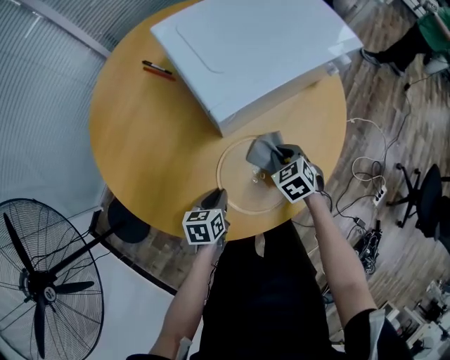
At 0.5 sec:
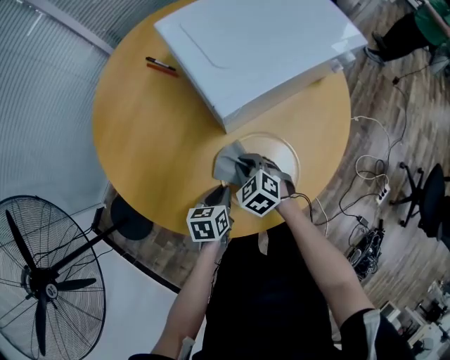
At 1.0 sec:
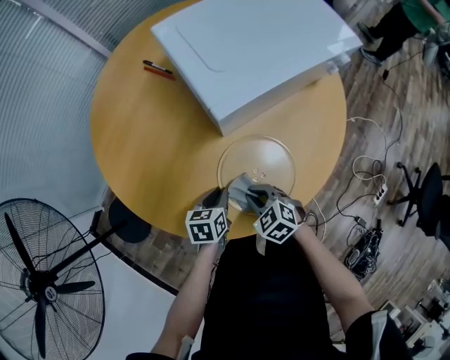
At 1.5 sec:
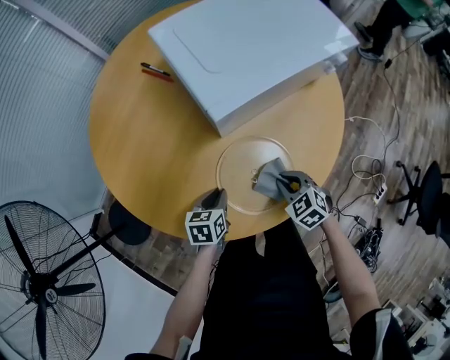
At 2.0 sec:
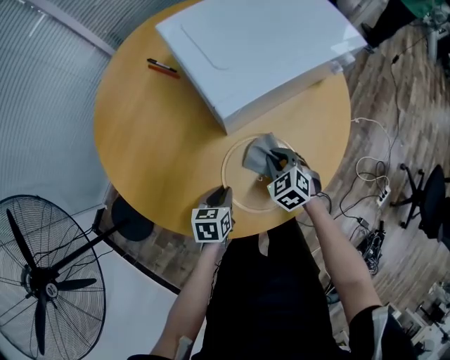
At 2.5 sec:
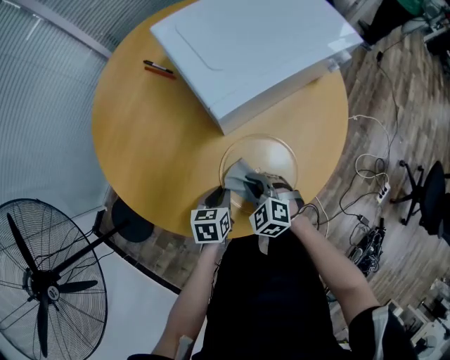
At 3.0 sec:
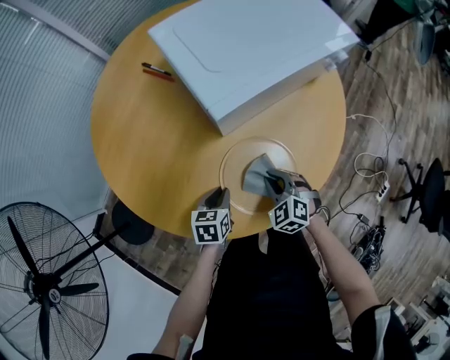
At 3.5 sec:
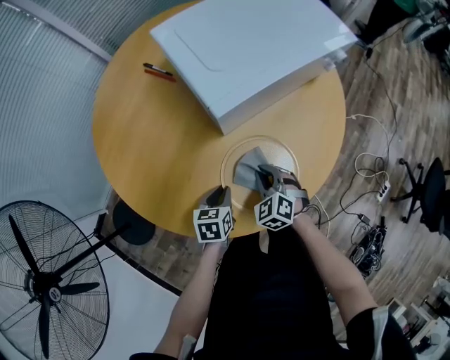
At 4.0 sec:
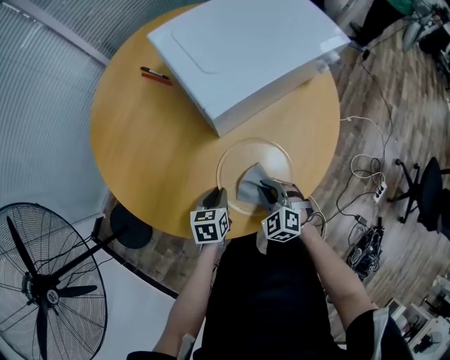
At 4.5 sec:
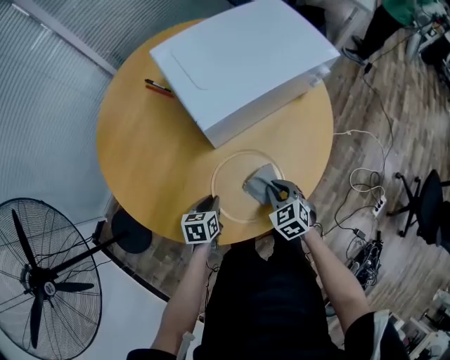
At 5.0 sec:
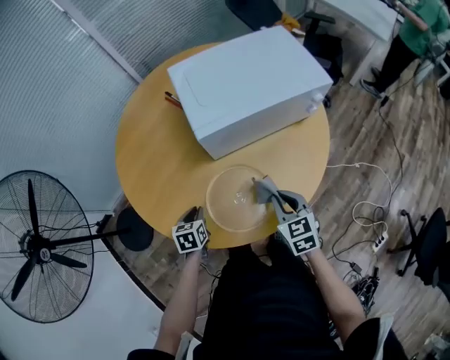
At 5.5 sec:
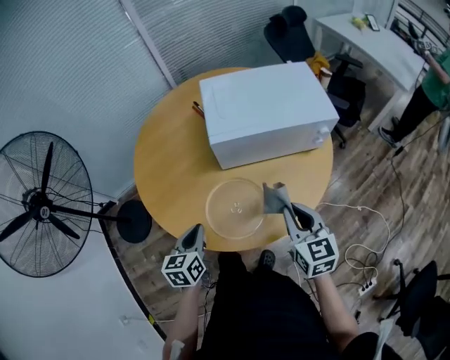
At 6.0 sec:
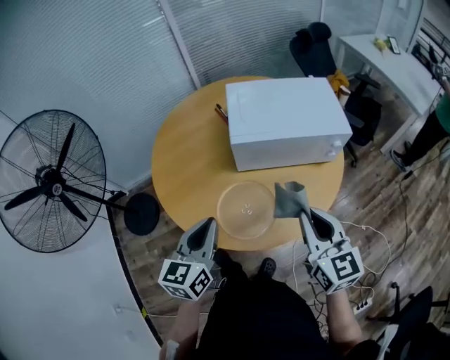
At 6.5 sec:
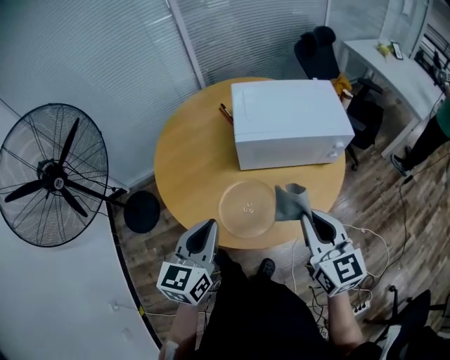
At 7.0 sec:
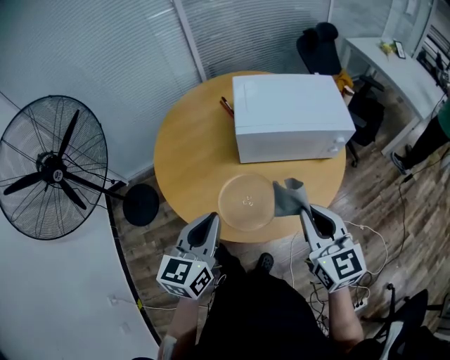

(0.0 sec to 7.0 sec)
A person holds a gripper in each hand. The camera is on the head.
0.0 sec - 2.0 sec: The right gripper travels to the left and back again, approximately 15 cm each way.
2.0 sec - 3.5 sec: The right gripper goes approximately 5 cm backward.
3.5 sec - 5.0 sec: The right gripper is displaced to the right and upward by approximately 15 cm, and turns by about 30 degrees, while the left gripper shifts by some 5 cm, and turns by approximately 20 degrees.
5.0 sec - 7.0 sec: Both grippers travel together upward, approximately 30 cm. The right gripper changes its angle by approximately 30 degrees, while the left gripper points its fingers roughly 40 degrees further upward.

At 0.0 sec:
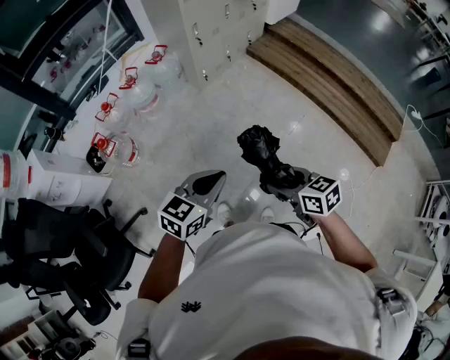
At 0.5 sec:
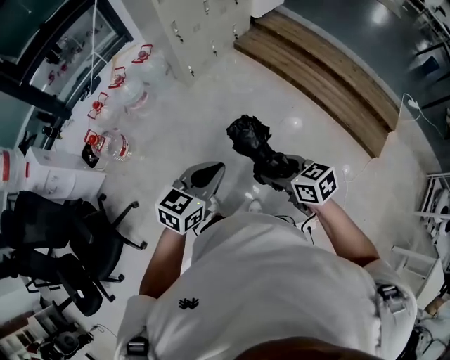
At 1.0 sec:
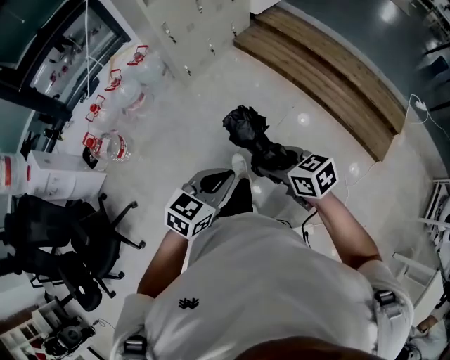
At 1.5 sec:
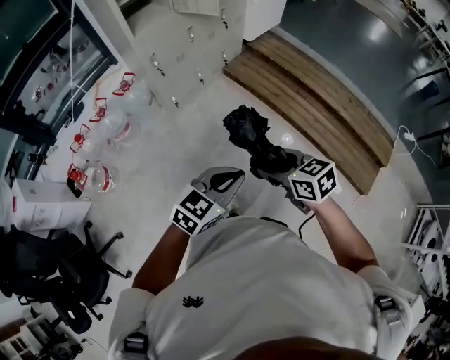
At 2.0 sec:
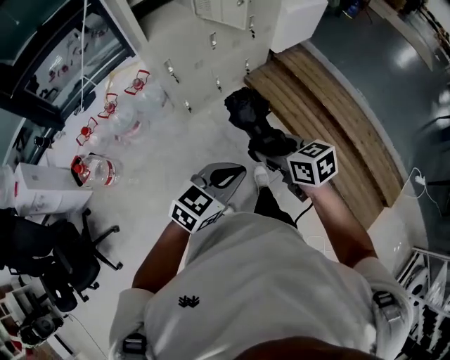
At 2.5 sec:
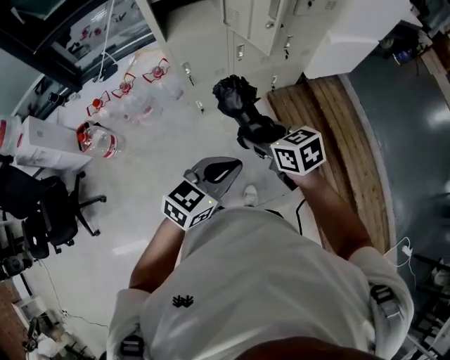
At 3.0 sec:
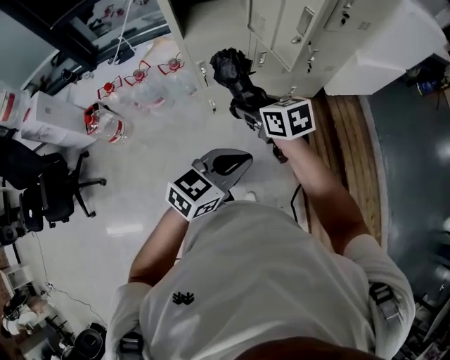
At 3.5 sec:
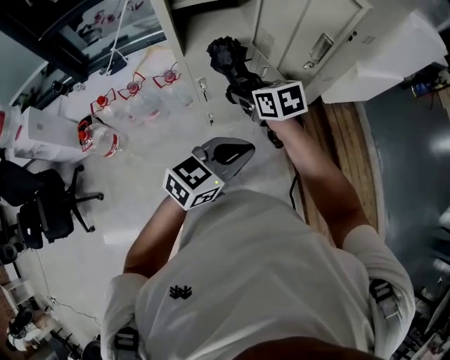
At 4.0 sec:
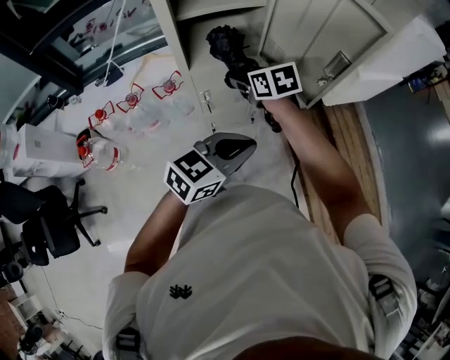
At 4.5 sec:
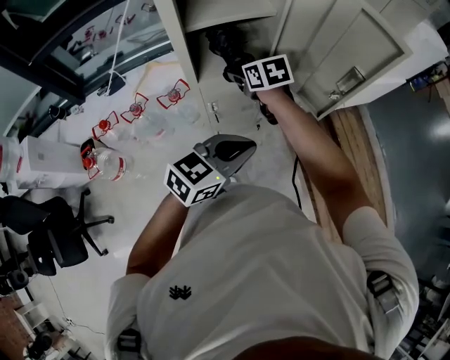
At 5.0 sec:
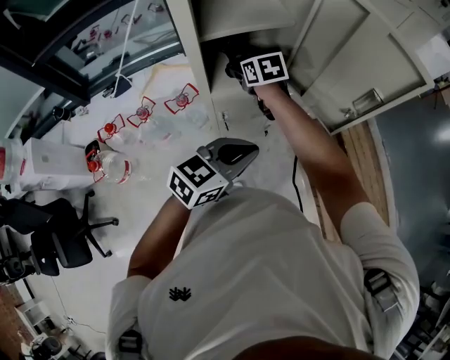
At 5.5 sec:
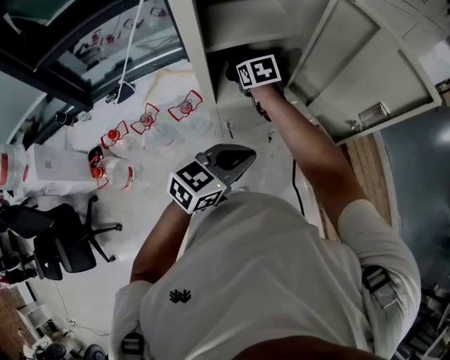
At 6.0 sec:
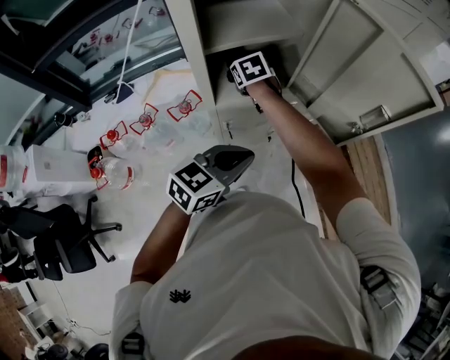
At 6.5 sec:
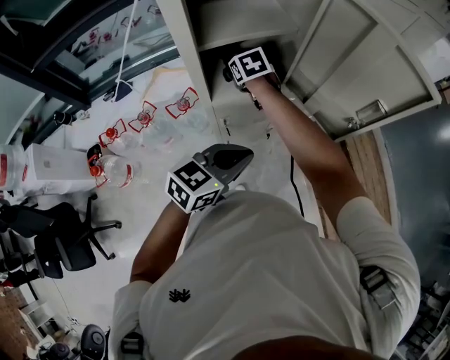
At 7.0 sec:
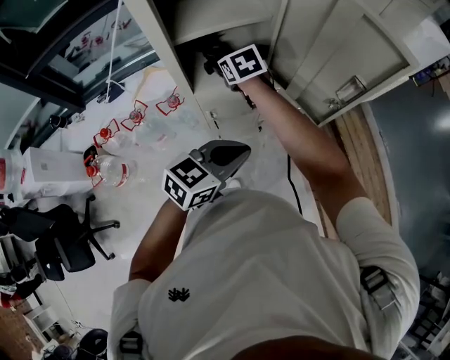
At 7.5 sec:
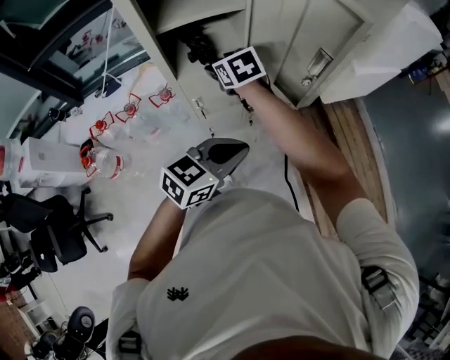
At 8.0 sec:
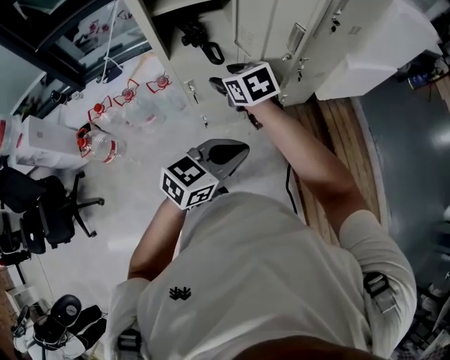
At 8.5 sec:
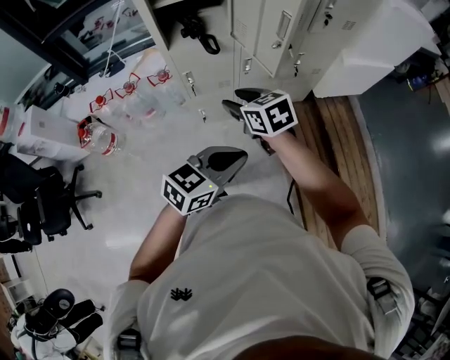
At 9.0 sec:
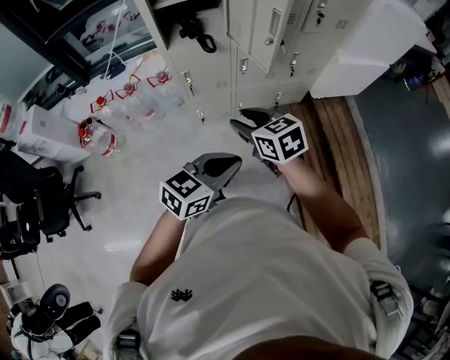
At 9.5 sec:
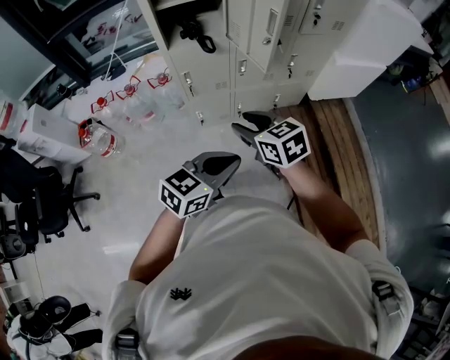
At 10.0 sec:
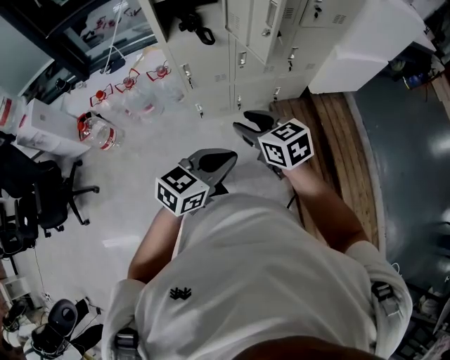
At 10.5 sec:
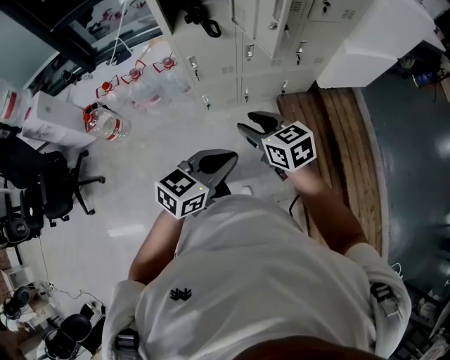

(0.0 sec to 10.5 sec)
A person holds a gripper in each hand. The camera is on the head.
0.0 sec - 2.0 sec: The two grippers travel together, forward and to the right, approximately 50 cm.
2.0 sec - 4.0 sec: Both grippers move forward, some 40 cm.
4.0 sec - 6.5 sec: The right gripper travels forward and to the left by roughly 20 cm; the left gripper shifts roughly 10 cm to the left and forward.
6.5 sec - 8.5 sec: The right gripper is displaced backward and to the right by about 40 cm, and turns by about 20 degrees; the left gripper goes about 30 cm to the right and backward.
8.5 sec - 10.5 sec: The right gripper shifts roughly 15 cm backward and to the right; the left gripper heads backward, covering roughly 5 cm.

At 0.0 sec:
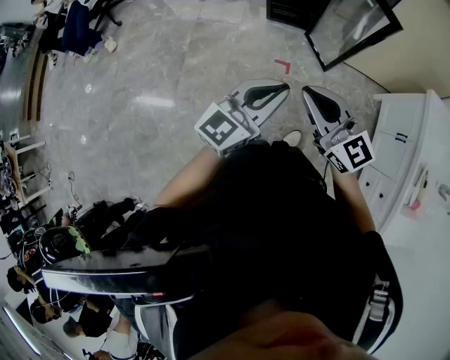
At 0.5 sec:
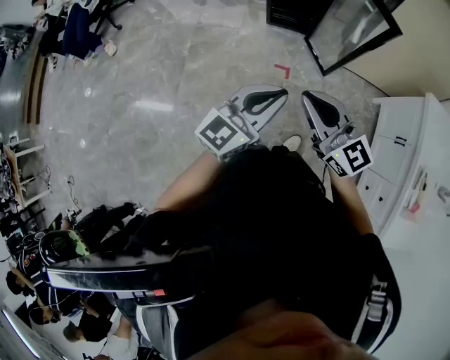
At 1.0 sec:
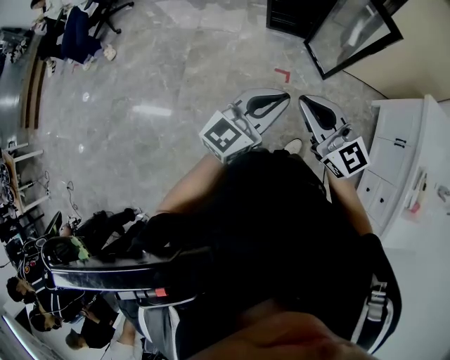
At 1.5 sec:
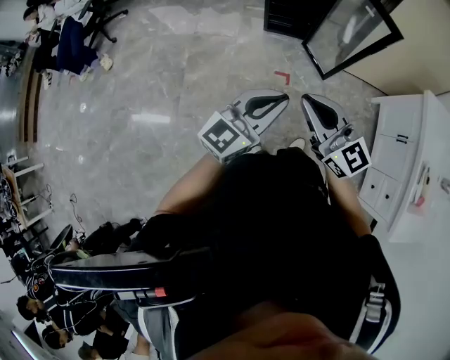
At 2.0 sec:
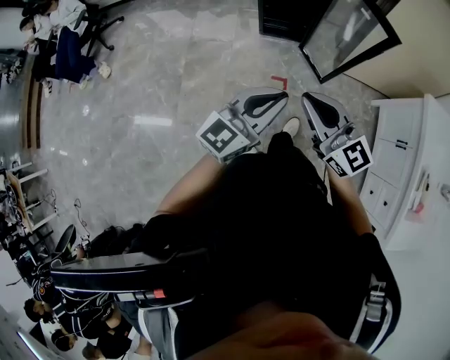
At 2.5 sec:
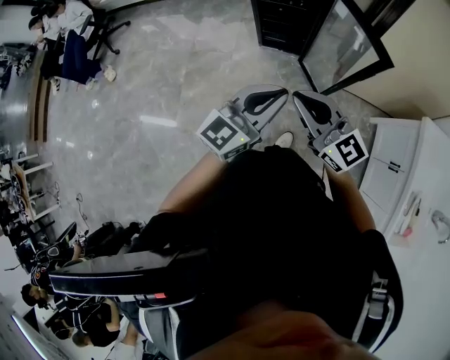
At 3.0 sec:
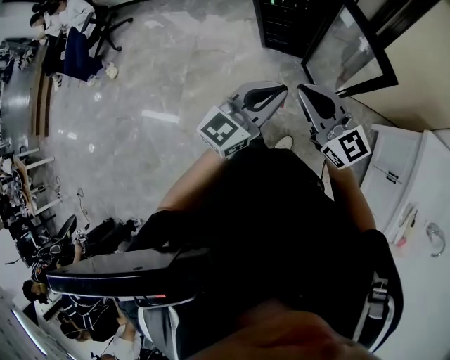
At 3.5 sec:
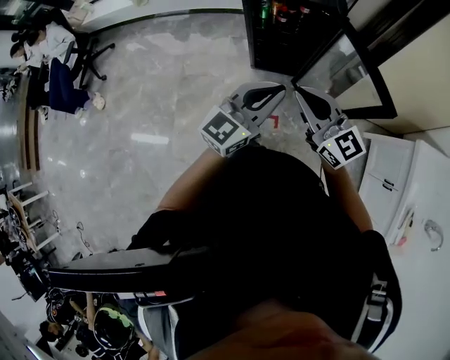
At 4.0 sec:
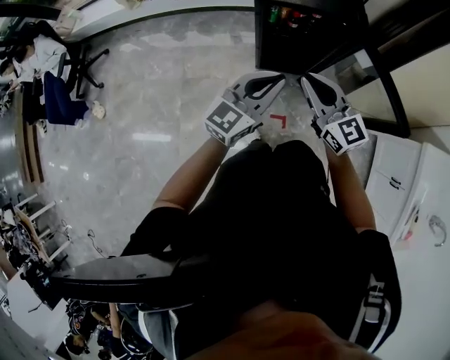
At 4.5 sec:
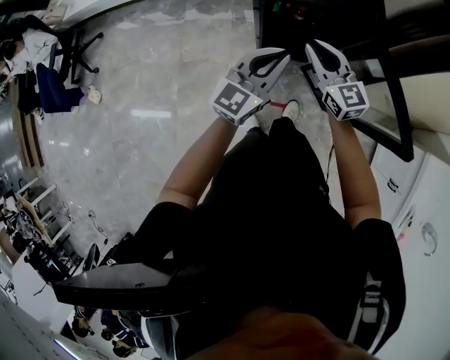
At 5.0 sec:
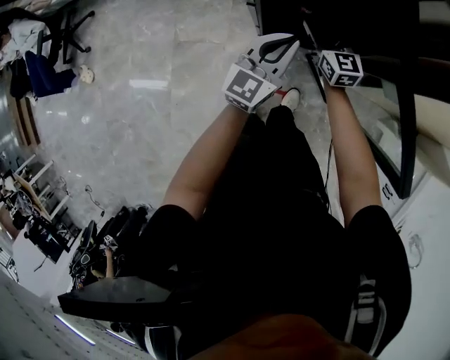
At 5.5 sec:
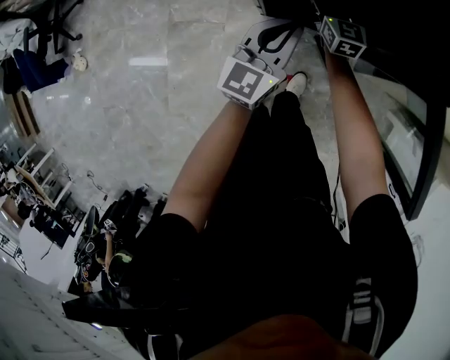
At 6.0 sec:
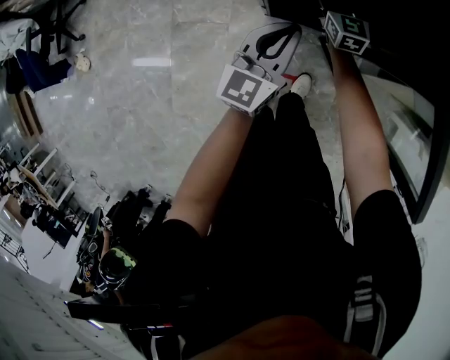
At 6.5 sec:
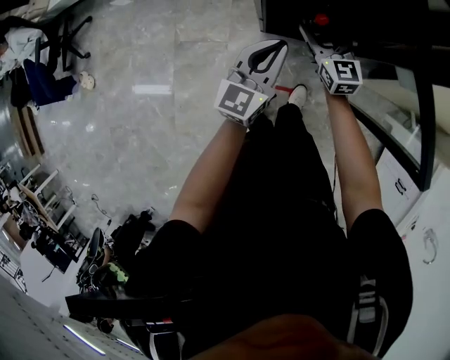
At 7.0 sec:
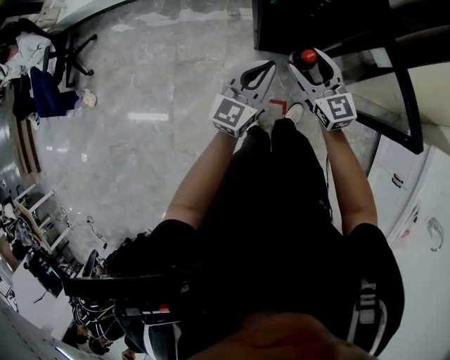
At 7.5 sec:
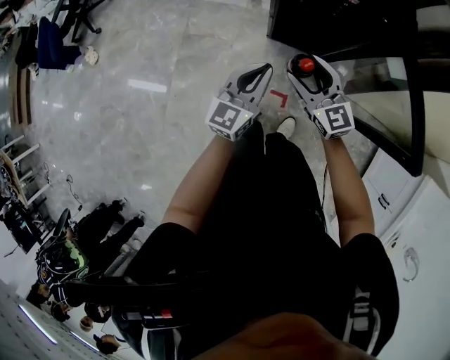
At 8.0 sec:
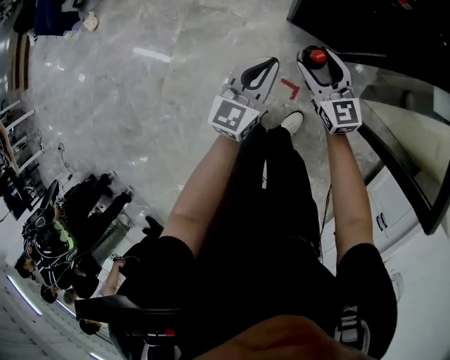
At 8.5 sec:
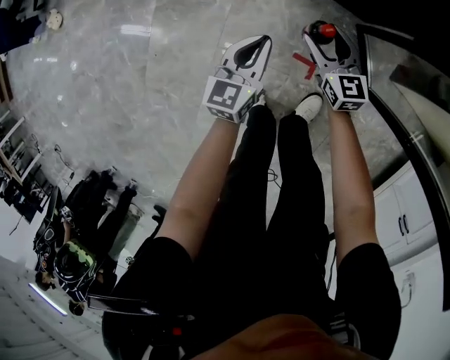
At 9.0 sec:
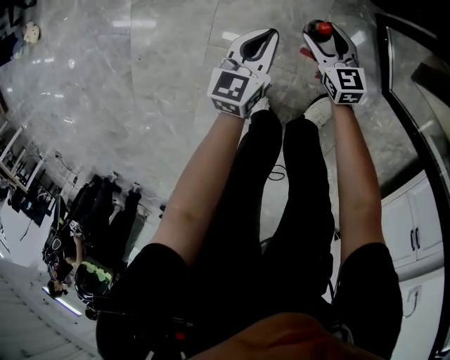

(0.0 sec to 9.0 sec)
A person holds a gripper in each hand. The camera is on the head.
0.0 sec - 2.0 sec: Both grippers move forward, roughly 10 cm.
2.0 sec - 4.5 sec: The two grippers travel together, forward, roughly 60 cm.
4.5 sec - 7.0 sec: The left gripper is displaced downward by about 5 cm. The right gripper goes forward and returns, approximately 20 cm each way, and opens up.
7.0 sec - 9.0 sec: The two grippers go some 70 cm downward. The right gripper changes its angle by about 20 degrees, while the left gripper turns by about 30 degrees.
